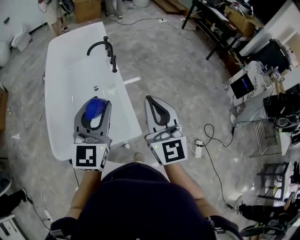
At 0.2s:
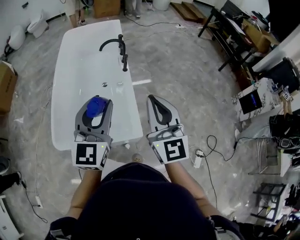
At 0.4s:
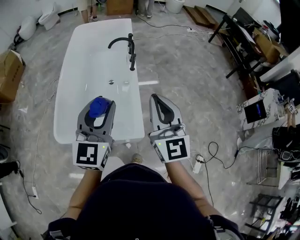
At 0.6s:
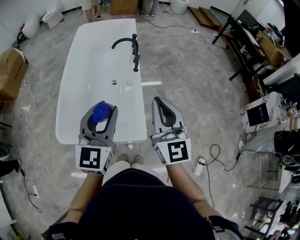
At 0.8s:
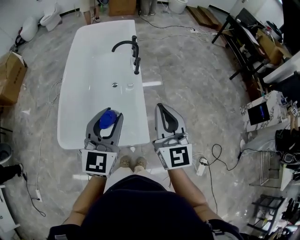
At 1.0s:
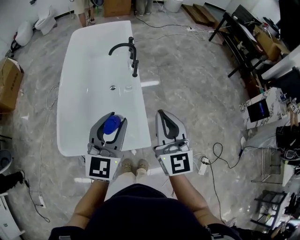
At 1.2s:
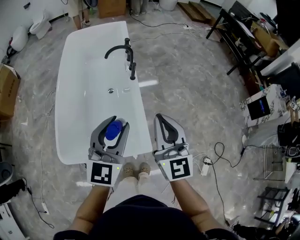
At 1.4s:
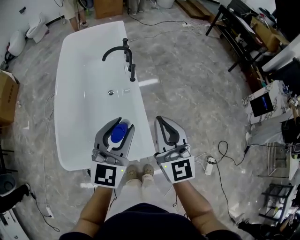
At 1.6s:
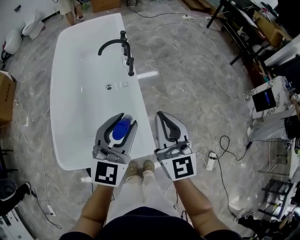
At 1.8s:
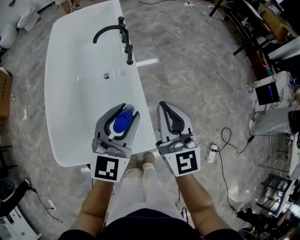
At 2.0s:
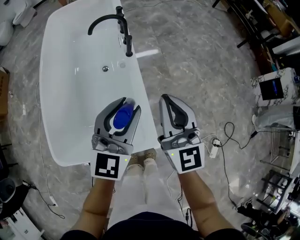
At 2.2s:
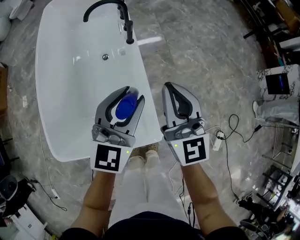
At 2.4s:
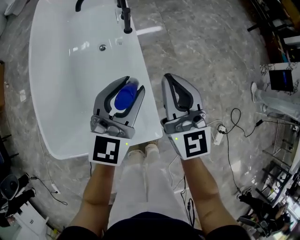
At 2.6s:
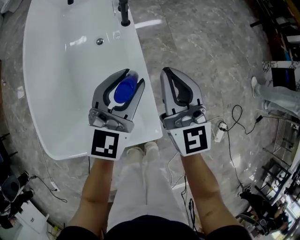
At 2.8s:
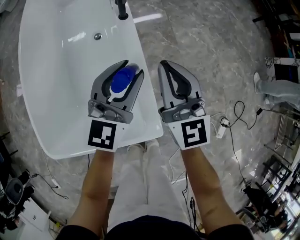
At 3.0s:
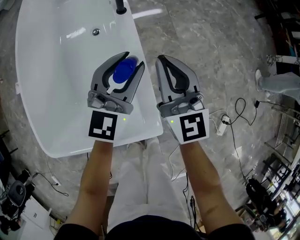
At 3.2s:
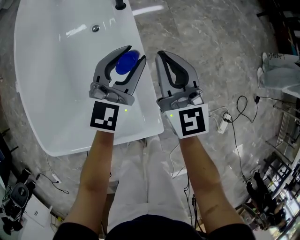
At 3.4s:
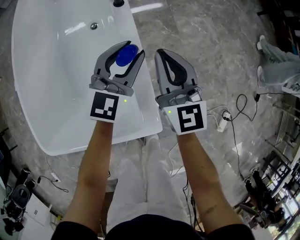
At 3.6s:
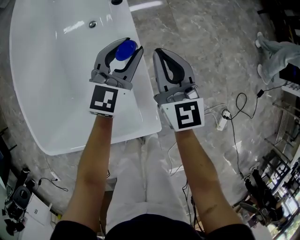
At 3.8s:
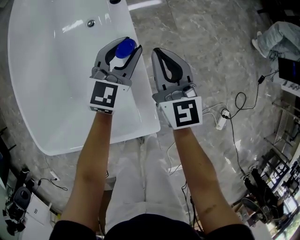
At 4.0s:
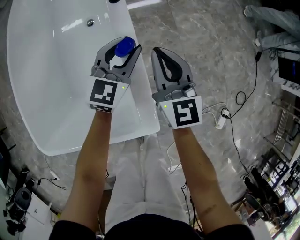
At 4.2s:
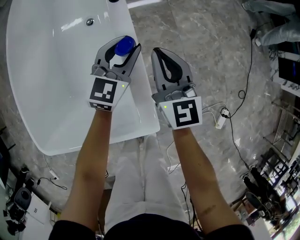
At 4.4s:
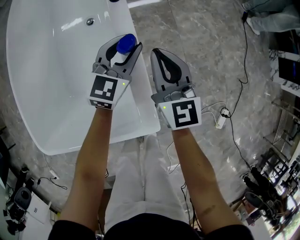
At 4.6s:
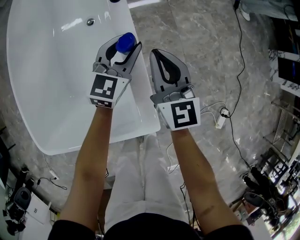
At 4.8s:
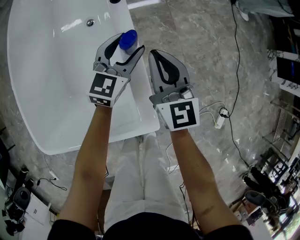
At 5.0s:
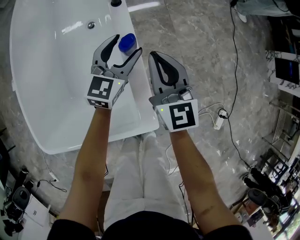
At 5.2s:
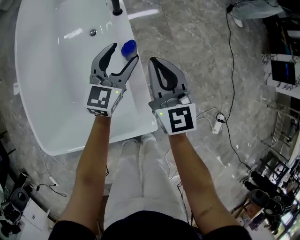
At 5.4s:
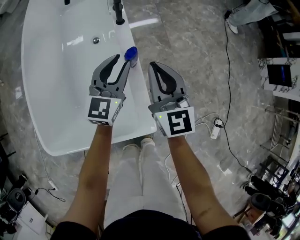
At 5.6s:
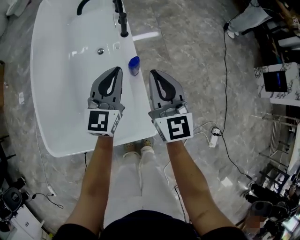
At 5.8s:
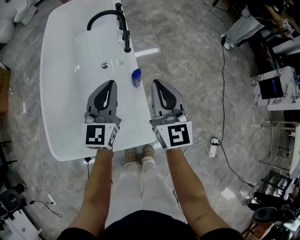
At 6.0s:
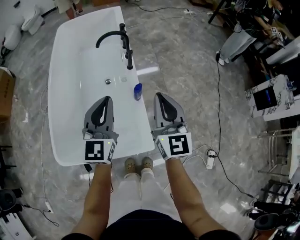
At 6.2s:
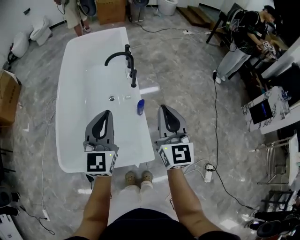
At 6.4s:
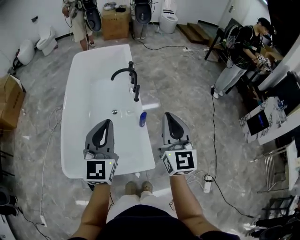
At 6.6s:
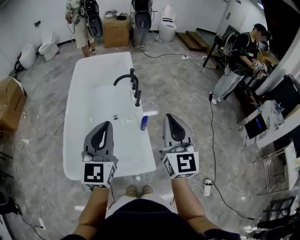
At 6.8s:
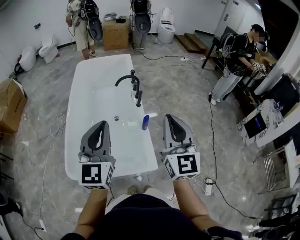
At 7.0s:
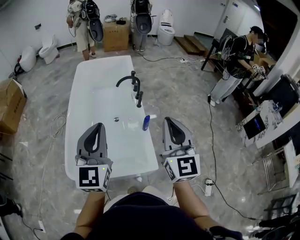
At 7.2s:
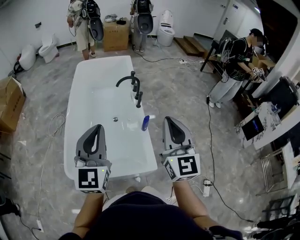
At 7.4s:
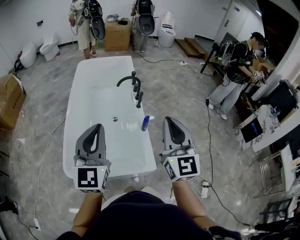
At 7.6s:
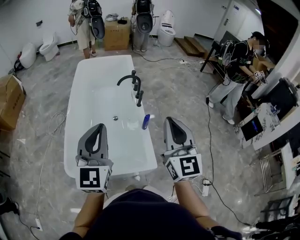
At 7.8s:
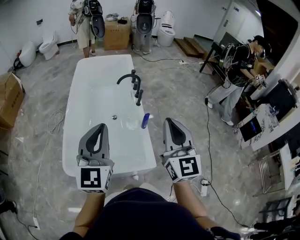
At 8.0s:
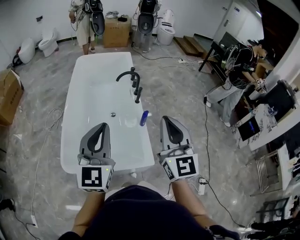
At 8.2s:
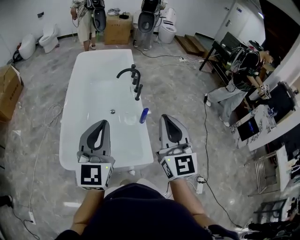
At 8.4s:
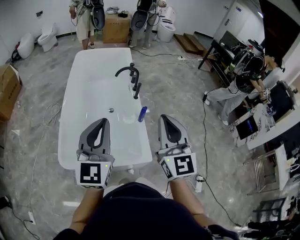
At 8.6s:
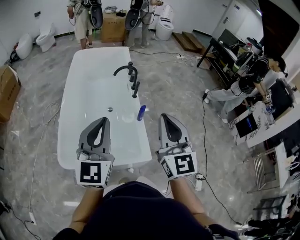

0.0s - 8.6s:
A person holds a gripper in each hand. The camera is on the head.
0.0s - 1.4s: The left gripper is displaced downward and forward by roughly 10 cm. The right gripper goes approximately 10 cm forward and downward.
1.4s - 2.8s: Both grippers travel together downward and forward, approximately 35 cm.
2.8s - 4.4s: The right gripper is displaced downward by some 10 cm. Meanwhile the left gripper is displaced downward and forward by about 15 cm.
4.4s - 5.8s: The grippers both shift upward and backward by about 25 cm. The left gripper rotates roughly 20 degrees, and closes its fingers.
5.8s - 7.2s: The right gripper heads upward and backward, covering some 30 cm; the left gripper is displaced upward, backward and to the left by roughly 35 cm.
7.2s - 8.6s: The grippers move only a little.

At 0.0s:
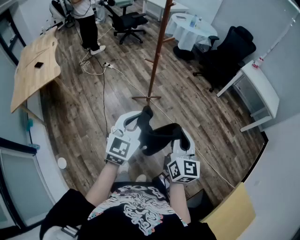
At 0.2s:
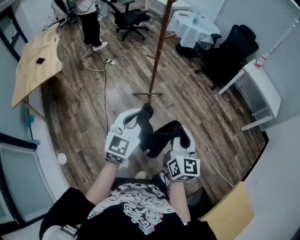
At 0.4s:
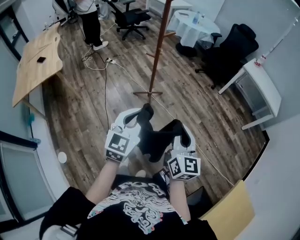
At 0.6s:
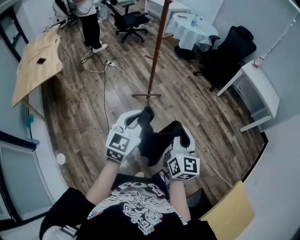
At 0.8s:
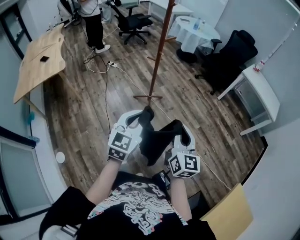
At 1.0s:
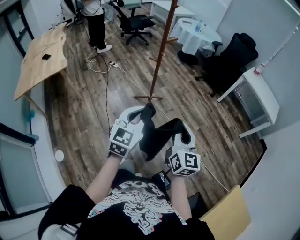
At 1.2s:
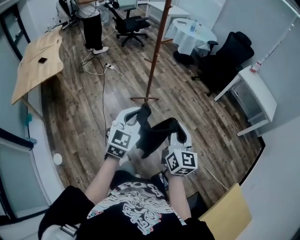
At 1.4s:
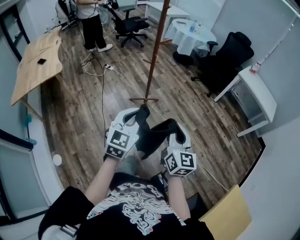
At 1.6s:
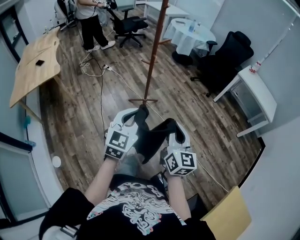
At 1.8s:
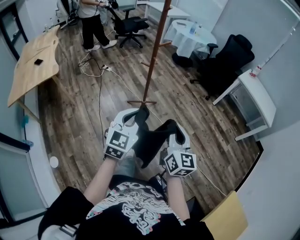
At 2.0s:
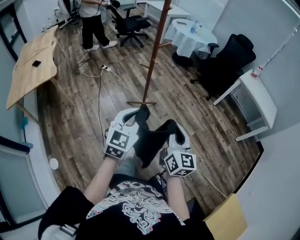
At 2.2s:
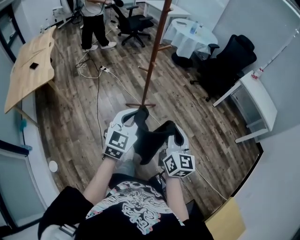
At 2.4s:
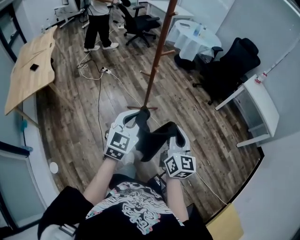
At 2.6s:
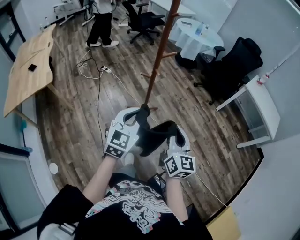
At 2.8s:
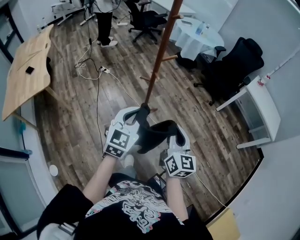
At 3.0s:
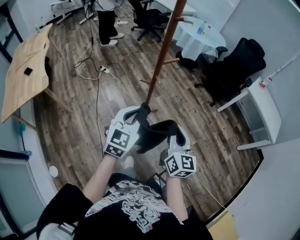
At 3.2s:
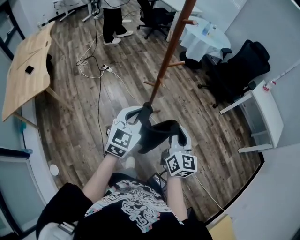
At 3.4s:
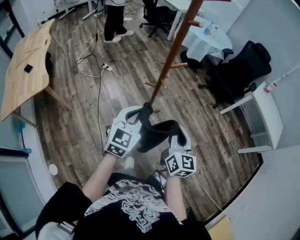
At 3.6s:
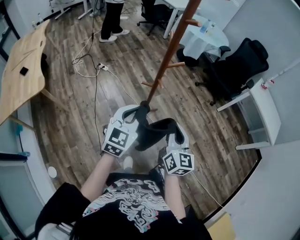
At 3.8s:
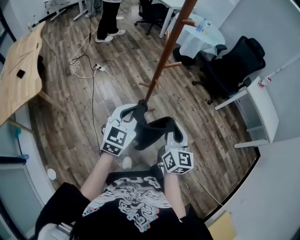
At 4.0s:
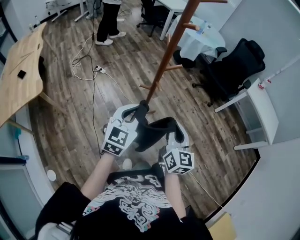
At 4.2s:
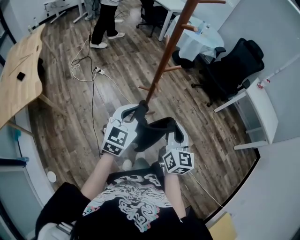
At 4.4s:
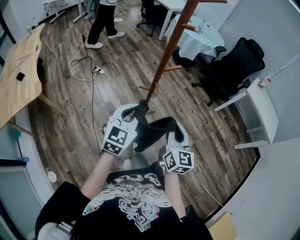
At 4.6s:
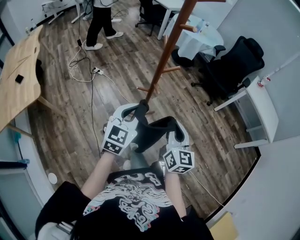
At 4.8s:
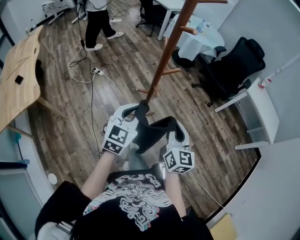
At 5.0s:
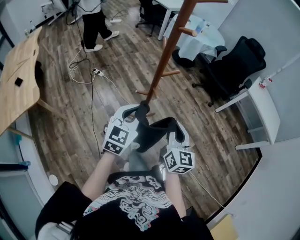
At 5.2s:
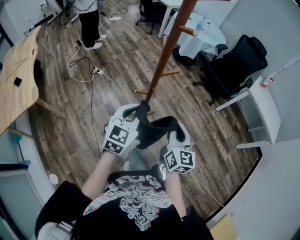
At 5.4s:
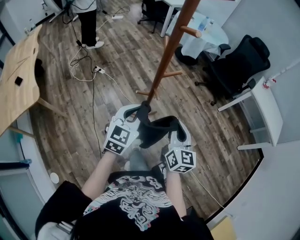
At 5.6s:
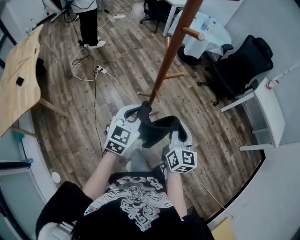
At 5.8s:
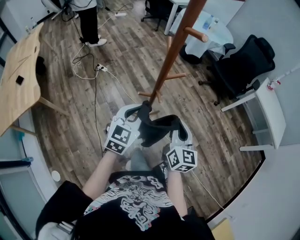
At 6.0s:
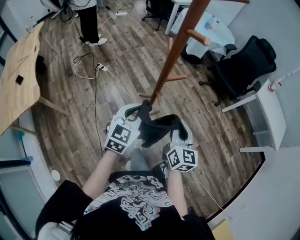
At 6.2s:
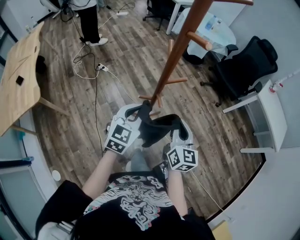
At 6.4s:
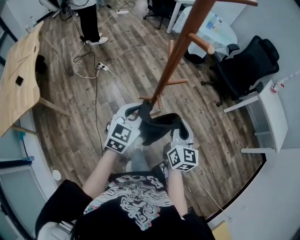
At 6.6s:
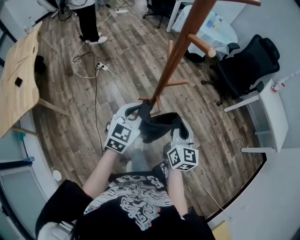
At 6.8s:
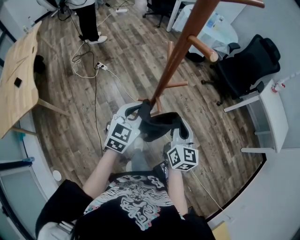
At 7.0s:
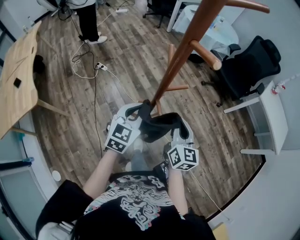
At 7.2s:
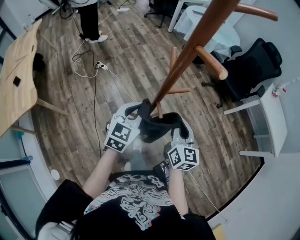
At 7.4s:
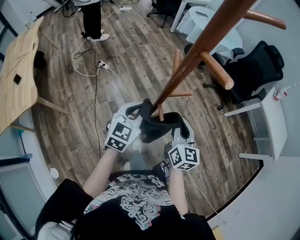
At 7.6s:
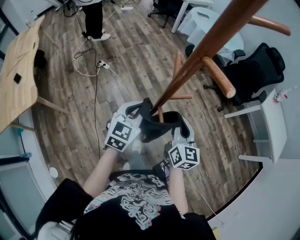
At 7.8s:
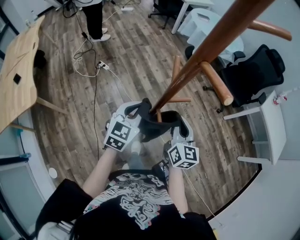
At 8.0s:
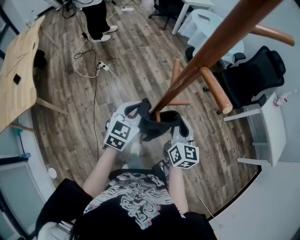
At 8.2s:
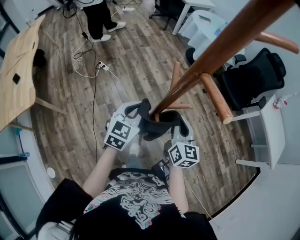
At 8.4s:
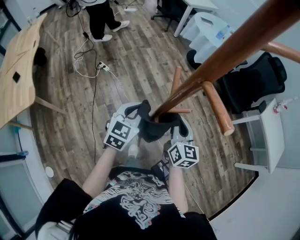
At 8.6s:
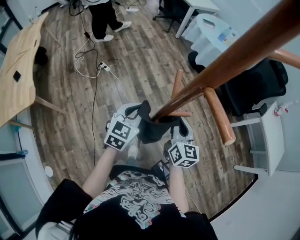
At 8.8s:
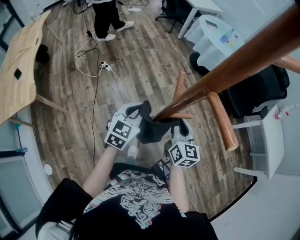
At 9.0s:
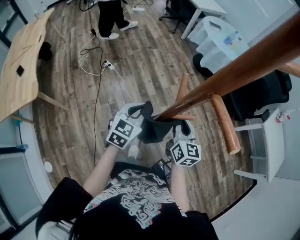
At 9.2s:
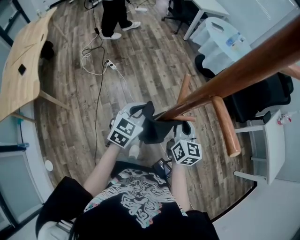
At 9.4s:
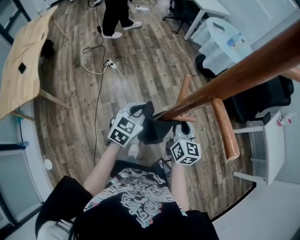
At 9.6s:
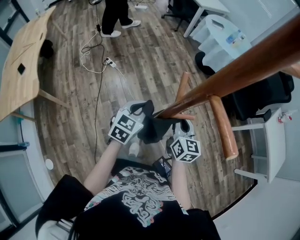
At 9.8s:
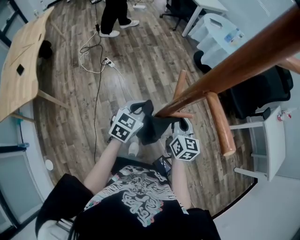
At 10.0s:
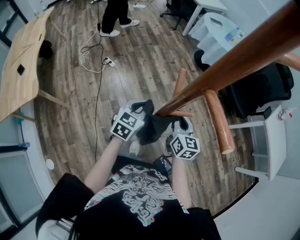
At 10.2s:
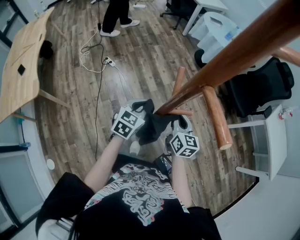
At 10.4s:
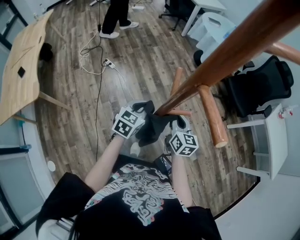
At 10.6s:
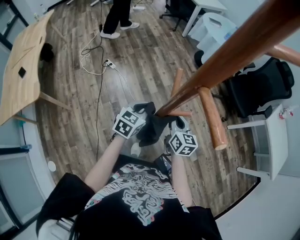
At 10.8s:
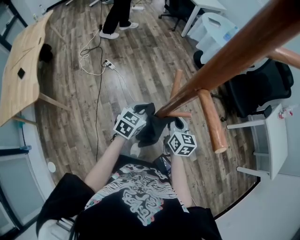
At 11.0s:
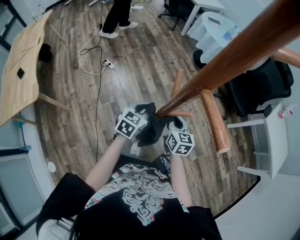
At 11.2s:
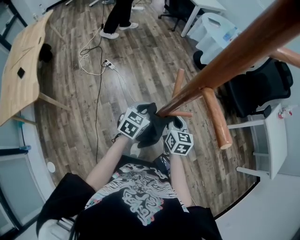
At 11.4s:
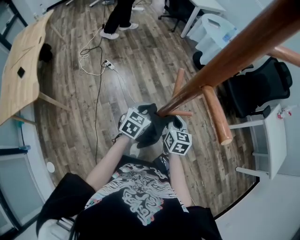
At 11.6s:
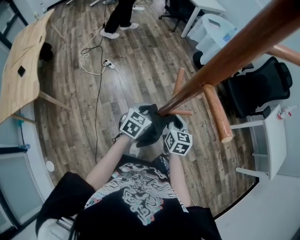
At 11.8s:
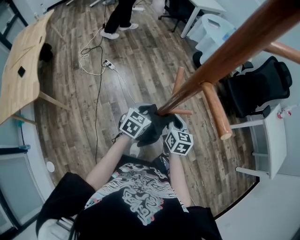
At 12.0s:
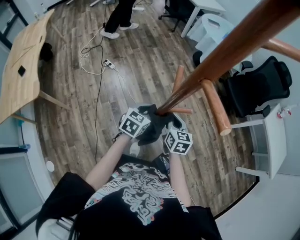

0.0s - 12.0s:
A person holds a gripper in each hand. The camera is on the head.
0.0s - 1.6s: The grippers move only a little.
1.6s - 3.0s: Both grippers move forward, some 30 cm.
3.0s - 4.4s: The two grippers go roughly 10 cm forward.
4.4s - 6.0s: The grippers both shift forward by about 10 cm.
6.0s - 7.6s: Both grippers move forward, approximately 10 cm.
7.6s - 9.0s: The grippers both shift forward by about 10 cm.
9.0s - 10.4s: The left gripper ends up approximately 5 cm from where it was, while the right gripper moves downward, approximately 5 cm.
10.4s - 12.0s: There are only small adjustments of the grippers.

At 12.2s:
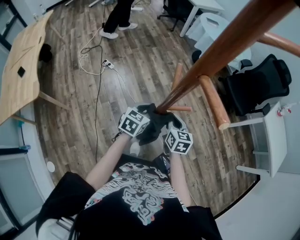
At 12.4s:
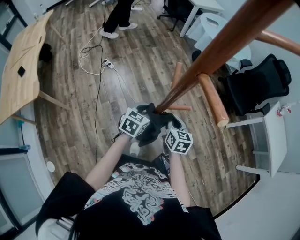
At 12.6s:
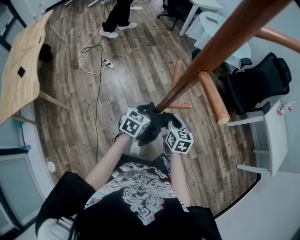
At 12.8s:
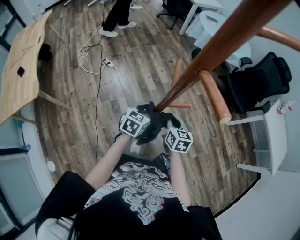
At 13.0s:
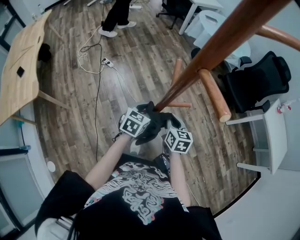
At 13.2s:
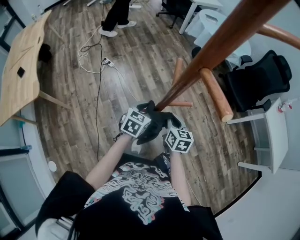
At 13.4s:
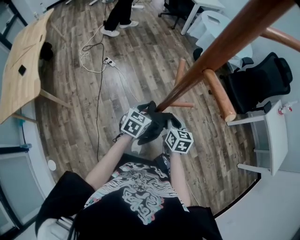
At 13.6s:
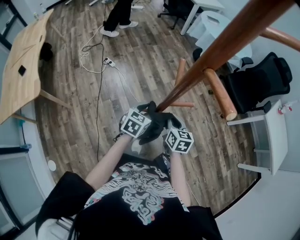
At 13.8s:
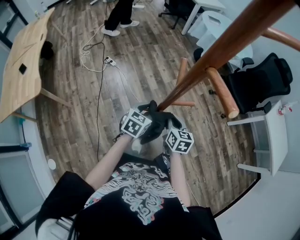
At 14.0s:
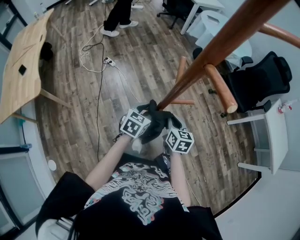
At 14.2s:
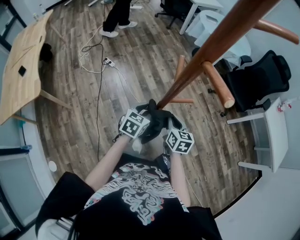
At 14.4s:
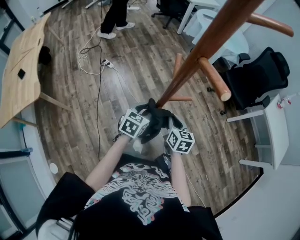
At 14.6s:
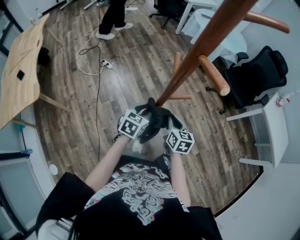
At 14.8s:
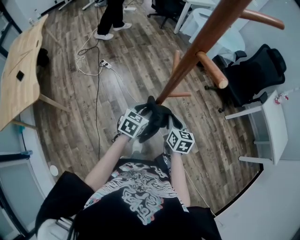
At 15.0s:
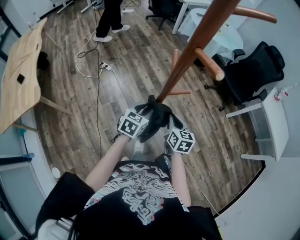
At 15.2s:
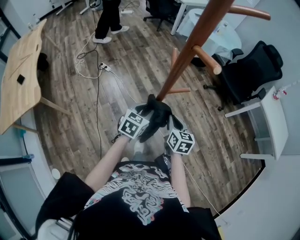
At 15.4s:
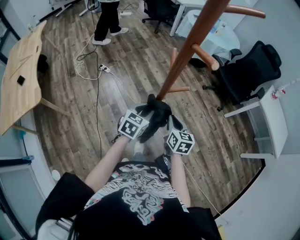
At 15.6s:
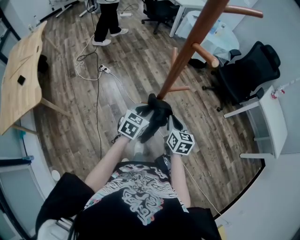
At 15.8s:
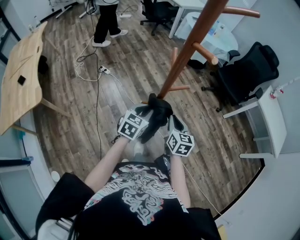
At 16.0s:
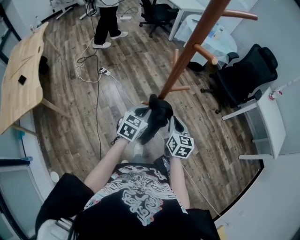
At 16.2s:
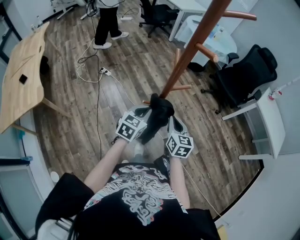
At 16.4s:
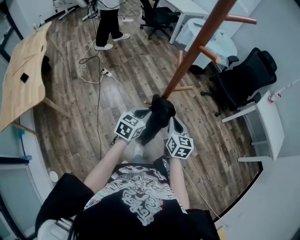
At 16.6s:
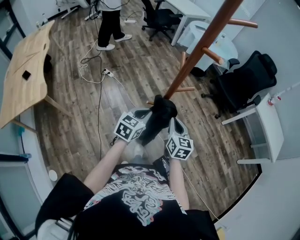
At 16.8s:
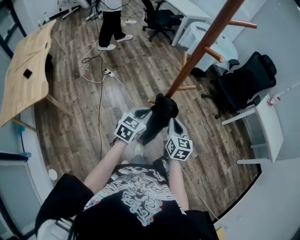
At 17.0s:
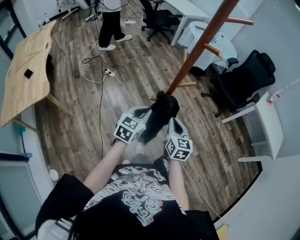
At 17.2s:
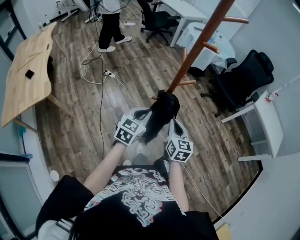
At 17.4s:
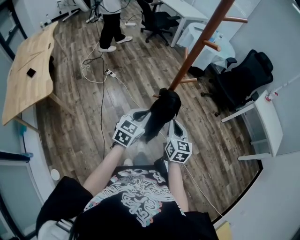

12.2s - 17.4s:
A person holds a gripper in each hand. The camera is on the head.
12.2s - 14.0s: The left gripper opens.
14.0s - 15.6s: Both grippers move backward, approximately 5 cm.
15.6s - 17.4s: The two grippers go roughly 15 cm backward and upward. The left gripper closes up.
